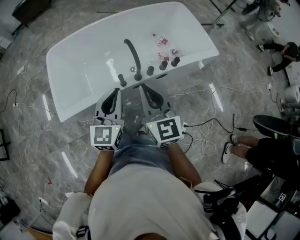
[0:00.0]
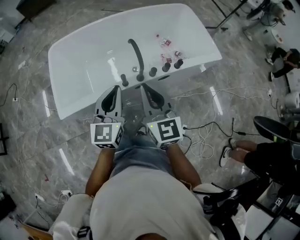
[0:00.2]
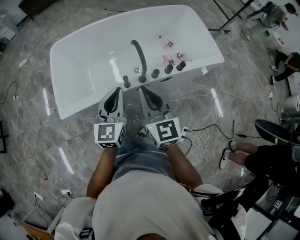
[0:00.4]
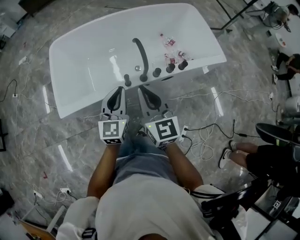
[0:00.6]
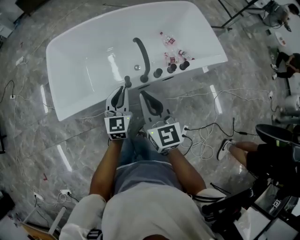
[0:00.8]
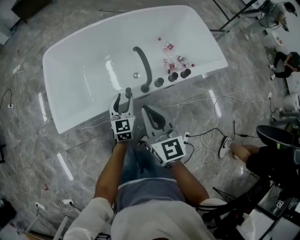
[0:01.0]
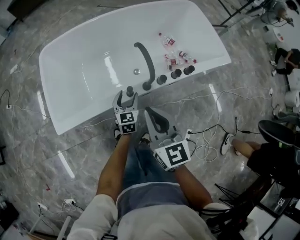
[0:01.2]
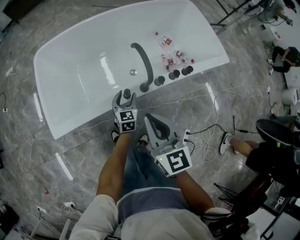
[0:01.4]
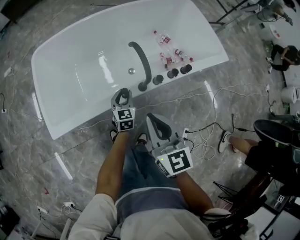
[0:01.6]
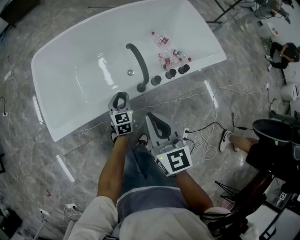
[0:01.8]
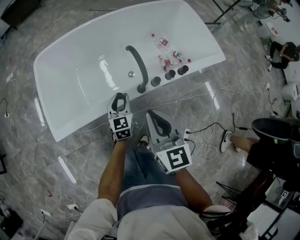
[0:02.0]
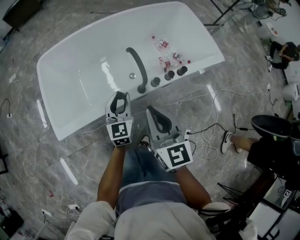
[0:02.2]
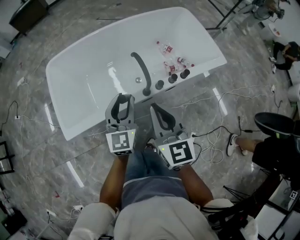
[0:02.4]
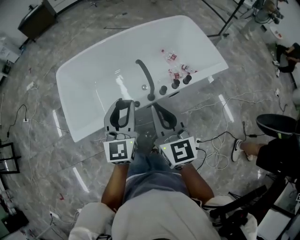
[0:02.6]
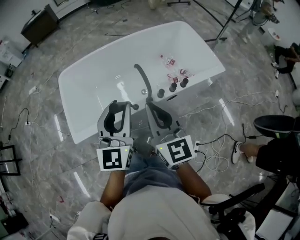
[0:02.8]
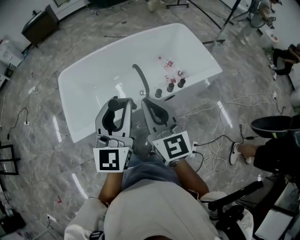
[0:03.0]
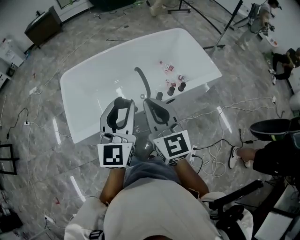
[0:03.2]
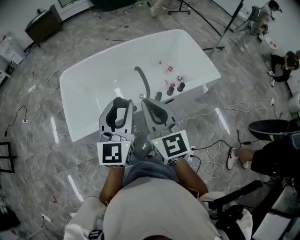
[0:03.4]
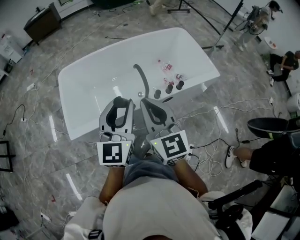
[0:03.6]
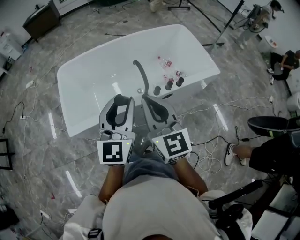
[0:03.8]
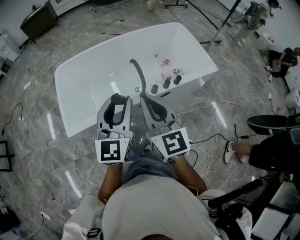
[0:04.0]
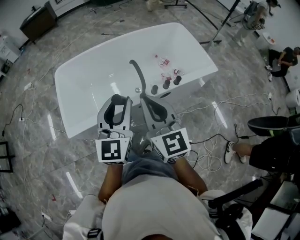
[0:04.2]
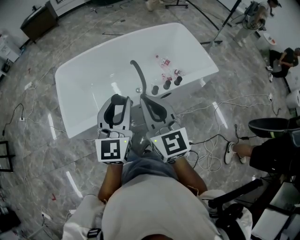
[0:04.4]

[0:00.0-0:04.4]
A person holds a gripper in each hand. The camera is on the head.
0:00.0 to 0:01.4: The left gripper heads downward and forward, covering roughly 60 cm, rotates approximately 20 degrees, and opens its fingers, while the right gripper shifts approximately 40 cm downward, forward and to the left.
0:01.4 to 0:03.0: The right gripper travels upward and backward by approximately 50 cm. The left gripper travels upward and backward by some 80 cm, angles its fingers upward, by about 40 degrees, and closes up.
0:03.0 to 0:04.4: The right gripper heads backward, covering roughly 5 cm. Meanwhile the left gripper ends up approximately 5 cm from where it was.

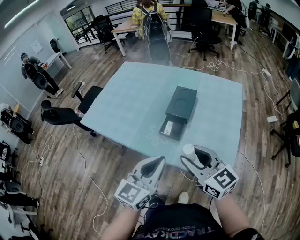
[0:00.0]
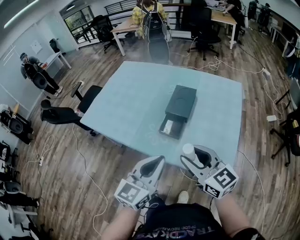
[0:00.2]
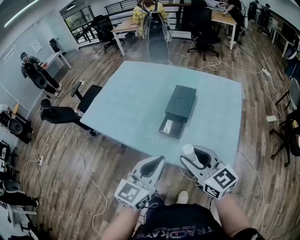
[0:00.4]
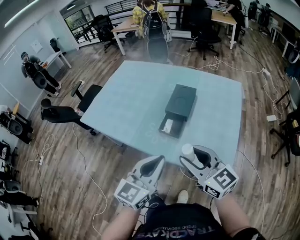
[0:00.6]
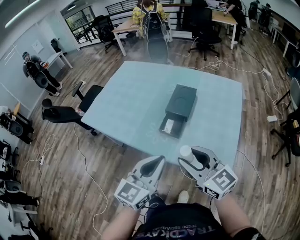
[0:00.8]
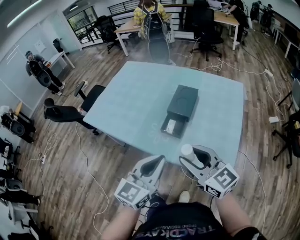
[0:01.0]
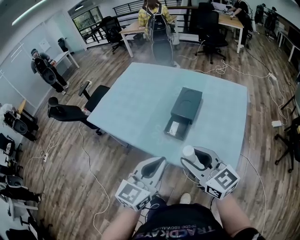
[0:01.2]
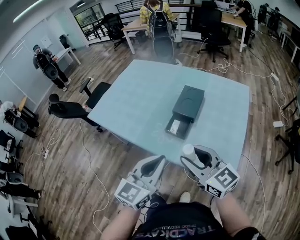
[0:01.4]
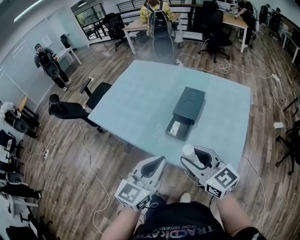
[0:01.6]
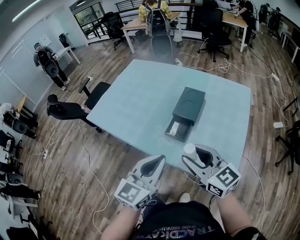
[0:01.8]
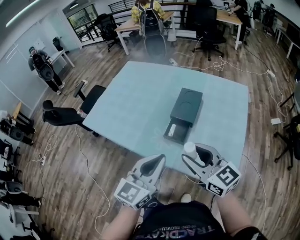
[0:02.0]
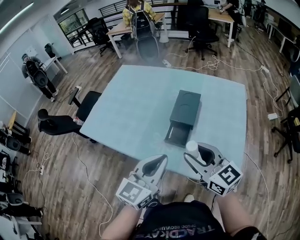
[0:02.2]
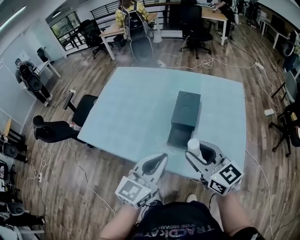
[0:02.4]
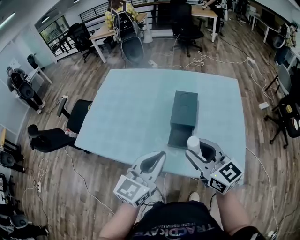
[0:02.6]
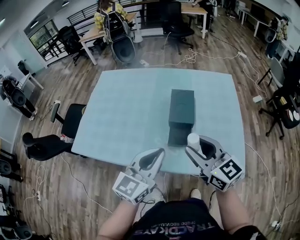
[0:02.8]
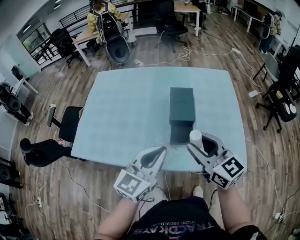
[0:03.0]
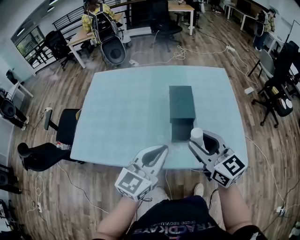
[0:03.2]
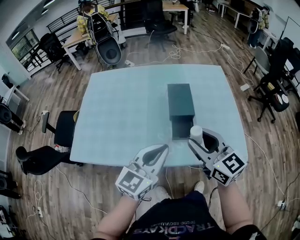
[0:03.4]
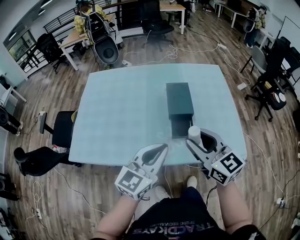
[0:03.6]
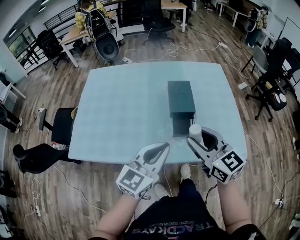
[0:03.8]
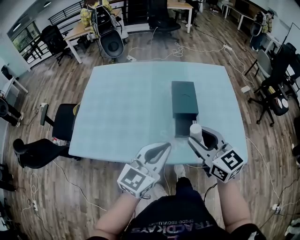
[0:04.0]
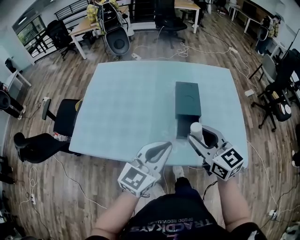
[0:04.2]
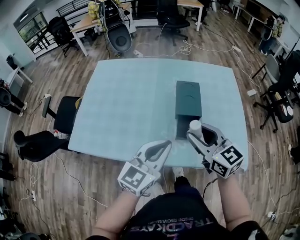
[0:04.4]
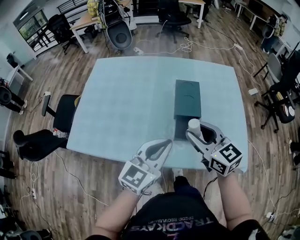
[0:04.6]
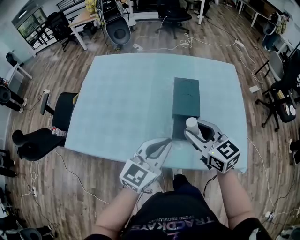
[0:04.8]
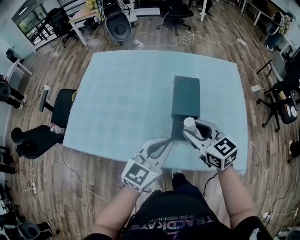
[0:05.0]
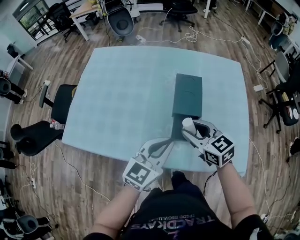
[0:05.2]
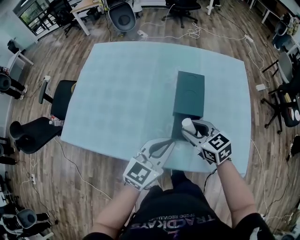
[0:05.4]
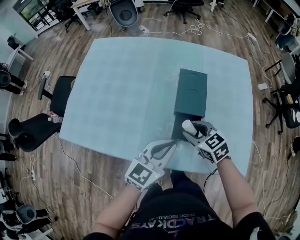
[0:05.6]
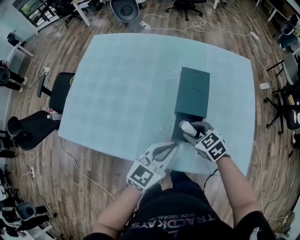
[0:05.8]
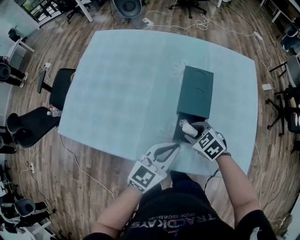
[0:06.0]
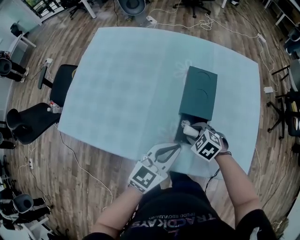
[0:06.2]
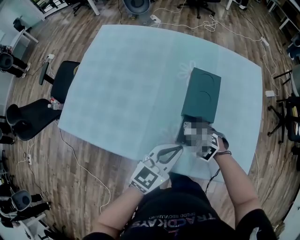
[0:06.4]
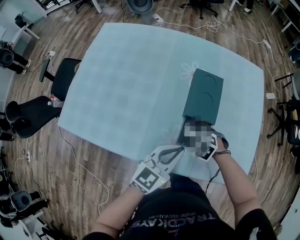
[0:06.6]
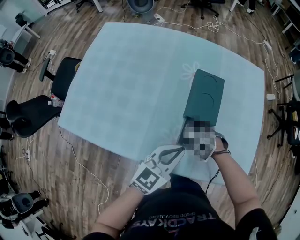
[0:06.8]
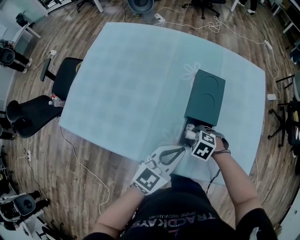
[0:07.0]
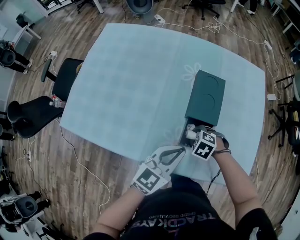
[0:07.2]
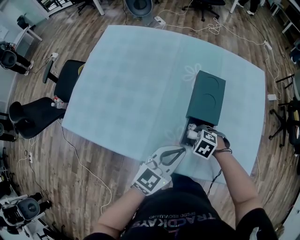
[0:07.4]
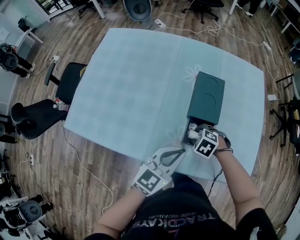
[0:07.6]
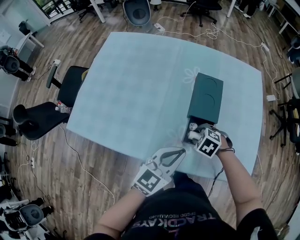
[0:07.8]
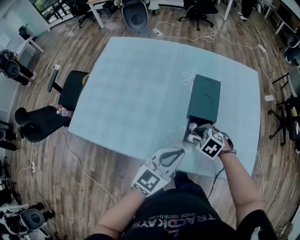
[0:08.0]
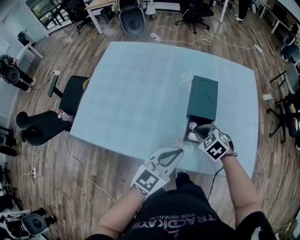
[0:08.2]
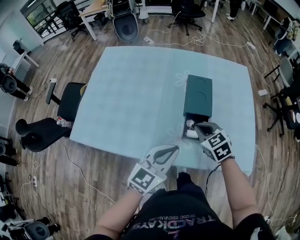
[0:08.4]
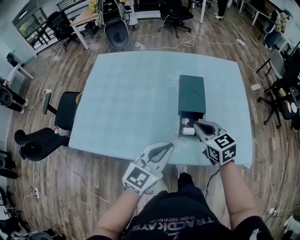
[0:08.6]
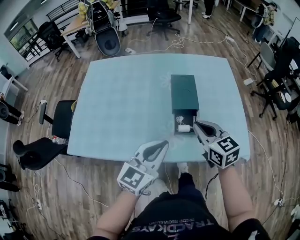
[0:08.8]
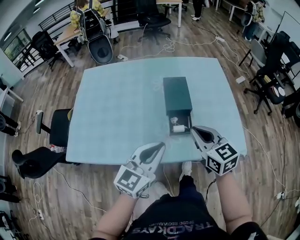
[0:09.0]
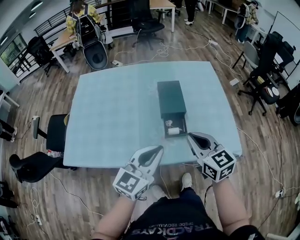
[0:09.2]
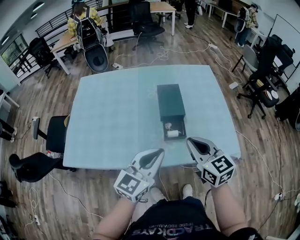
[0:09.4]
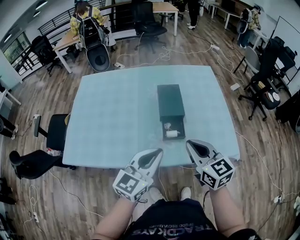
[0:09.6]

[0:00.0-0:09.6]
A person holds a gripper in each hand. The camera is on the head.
0:00.0 to 0:01.6: The grippers make only small movements.
0:01.6 to 0:03.2: The left gripper shifts by approximately 20 cm, and changes its angle by roughly 30 degrees. Meanwhile the right gripper changes place by some 15 cm, and turns by some 30 degrees.
0:03.2 to 0:04.8: The left gripper shifts about 5 cm forward; the right gripper is displaced forward and downward by some 10 cm.
0:04.8 to 0:06.4: The right gripper goes about 25 cm downward, and tips its fingers downward by roughly 50 degrees, while the left gripper is displaced downward by roughly 10 cm.
0:06.4 to 0:08.0: The left gripper changes place by some 5 cm.
0:08.0 to 0:09.6: The left gripper travels upward and backward by some 10 cm, while the right gripper travels upward and backward by about 25 cm, tips its fingers upward by roughly 50 degrees, and closes up.

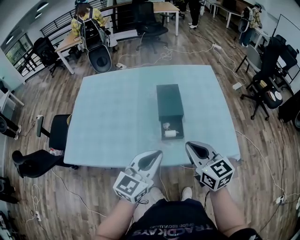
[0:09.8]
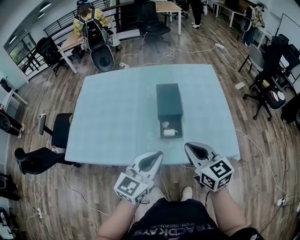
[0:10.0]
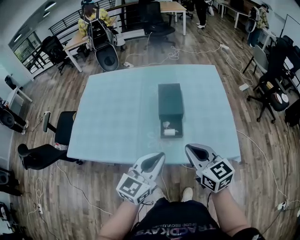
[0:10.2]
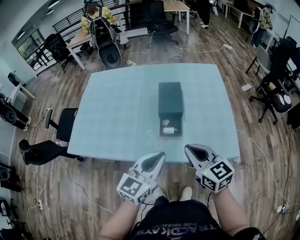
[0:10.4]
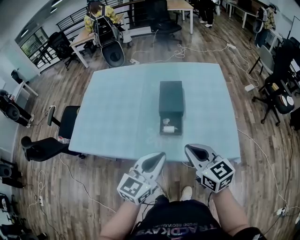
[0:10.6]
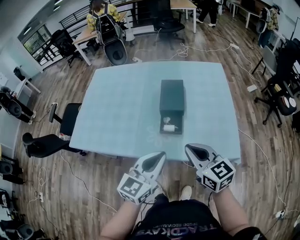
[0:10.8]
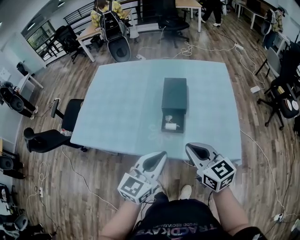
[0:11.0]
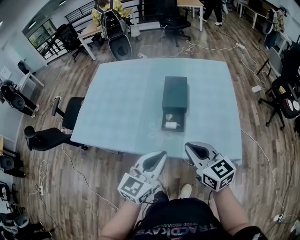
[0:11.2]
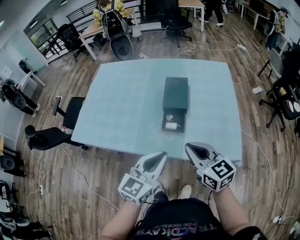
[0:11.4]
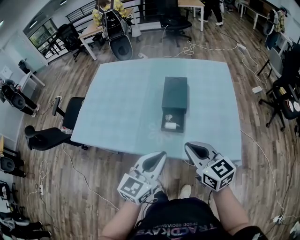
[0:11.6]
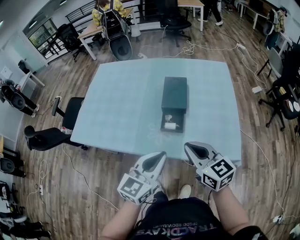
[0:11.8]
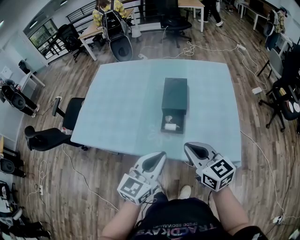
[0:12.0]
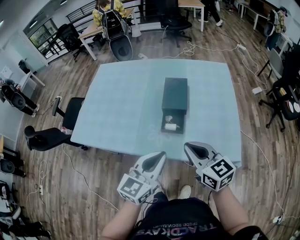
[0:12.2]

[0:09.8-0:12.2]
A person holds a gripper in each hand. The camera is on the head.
0:09.8 to 0:11.0: The right gripper shifts by about 5 cm. Meanwhile the left gripper goes approximately 5 cm to the right.
0:11.0 to 0:12.2: Both grippers stay about where they are.

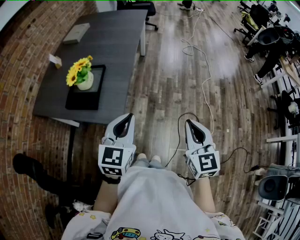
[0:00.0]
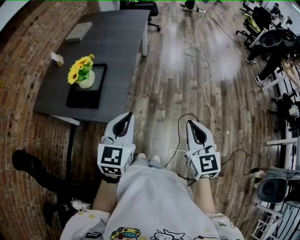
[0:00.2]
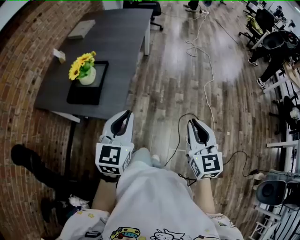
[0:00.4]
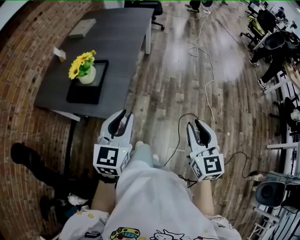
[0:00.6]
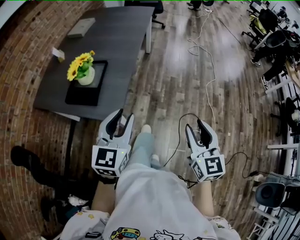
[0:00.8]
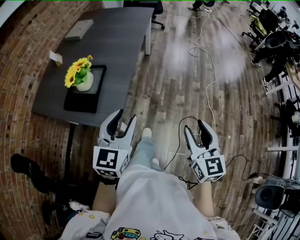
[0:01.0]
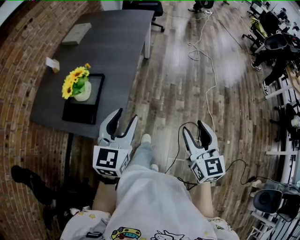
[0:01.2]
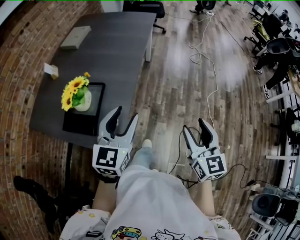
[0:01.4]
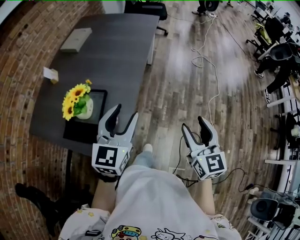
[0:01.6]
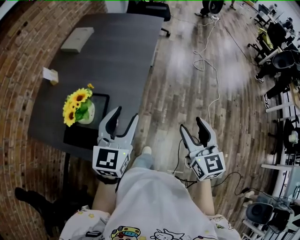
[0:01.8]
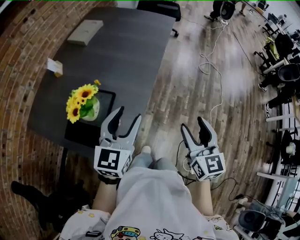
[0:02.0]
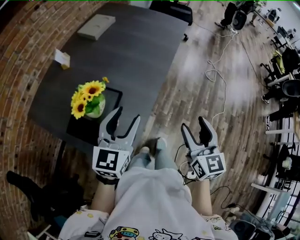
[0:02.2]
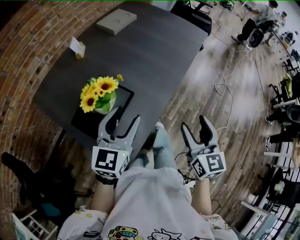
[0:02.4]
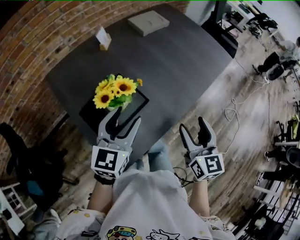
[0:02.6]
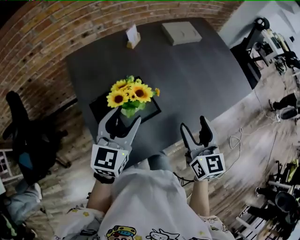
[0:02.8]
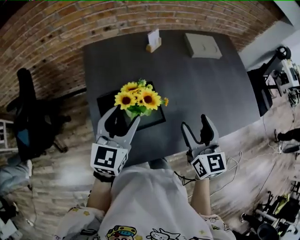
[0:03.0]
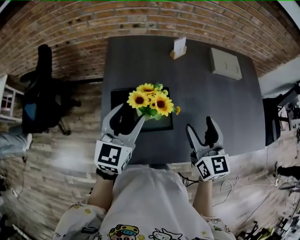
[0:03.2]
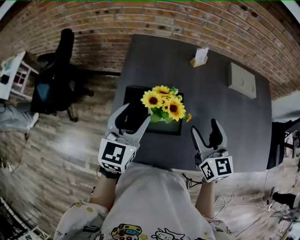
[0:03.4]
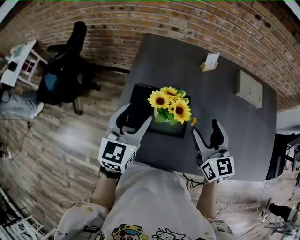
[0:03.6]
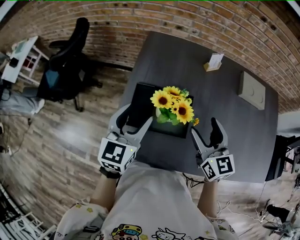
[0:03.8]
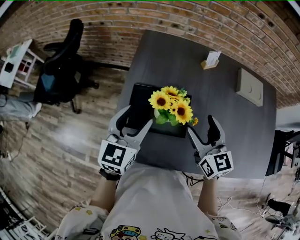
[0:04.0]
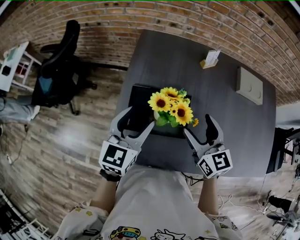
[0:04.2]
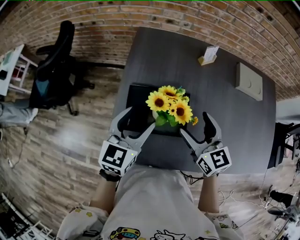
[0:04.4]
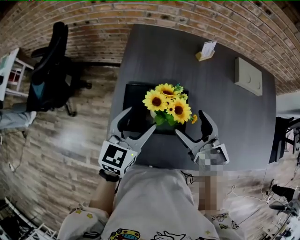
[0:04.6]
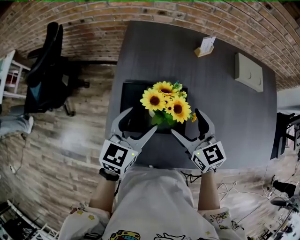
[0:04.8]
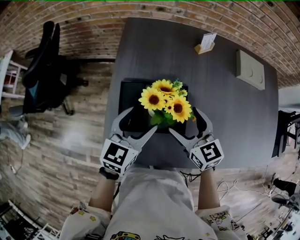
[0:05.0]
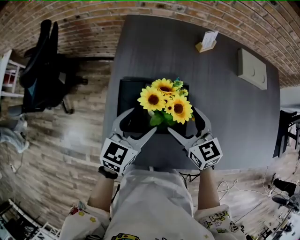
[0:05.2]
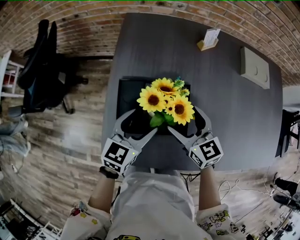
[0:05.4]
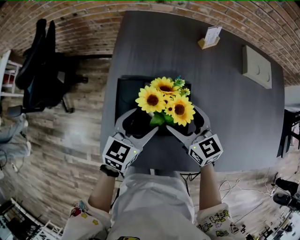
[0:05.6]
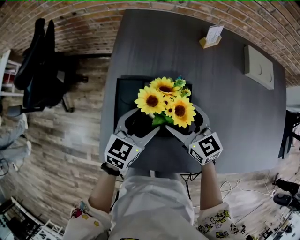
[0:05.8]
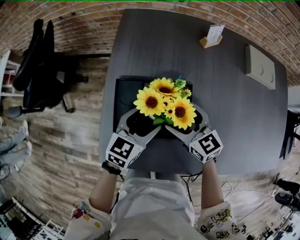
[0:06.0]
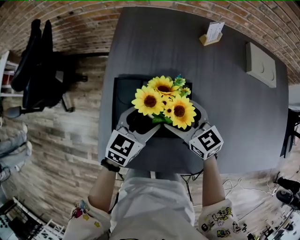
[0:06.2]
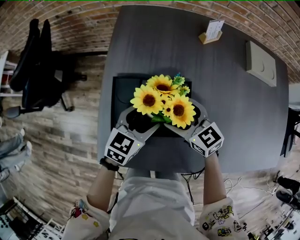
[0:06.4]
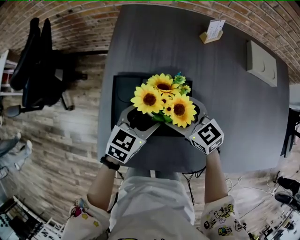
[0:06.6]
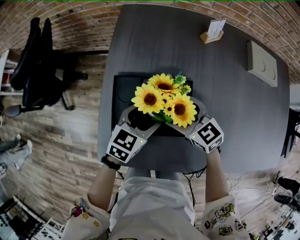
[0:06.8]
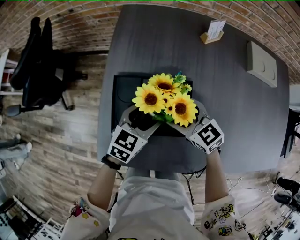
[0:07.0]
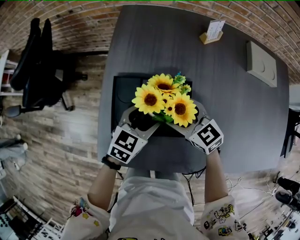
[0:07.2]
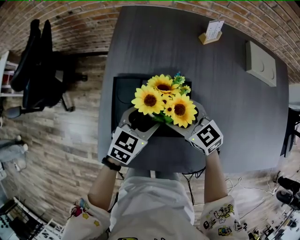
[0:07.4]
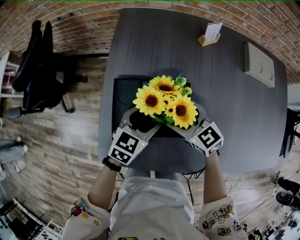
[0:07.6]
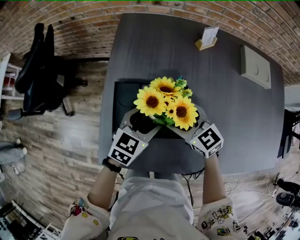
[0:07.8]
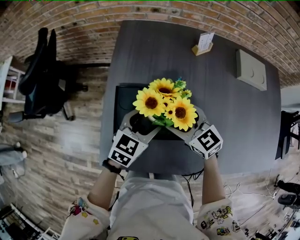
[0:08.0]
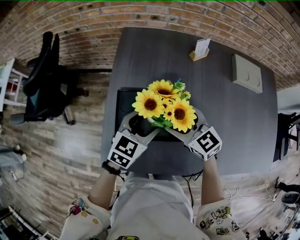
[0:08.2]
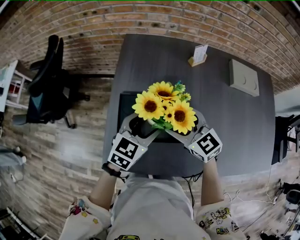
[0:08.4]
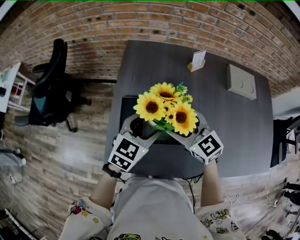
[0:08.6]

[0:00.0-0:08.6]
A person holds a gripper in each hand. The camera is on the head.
0:00.0 to 0:01.4: Both grippers move forward, roughly 15 cm. The right gripper opens up. Meanwhile the left gripper opens its fingers.
0:01.4 to 0:02.8: The left gripper changes place by roughly 25 cm, and rotates approximately 50 degrees, while the right gripper ends up about 40 cm from where it was, and turns by roughly 50 degrees.
0:02.8 to 0:04.4: The left gripper changes place by approximately 5 cm, and turns by roughly 30 degrees. The right gripper ends up roughly 20 cm from where it was, and swivels about 50 degrees.
0:04.4 to 0:05.8: Both grippers travel together downward, about 15 cm.
0:05.8 to 0:07.2: The grippers move only a little.
0:07.2 to 0:08.6: Both grippers travel together upward, approximately 10 cm.
